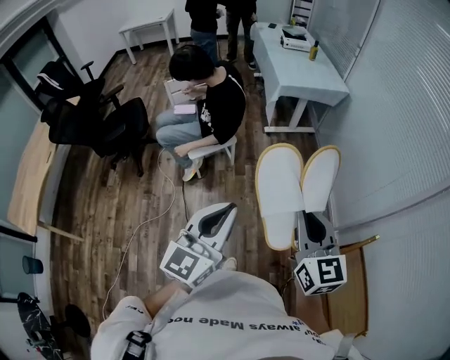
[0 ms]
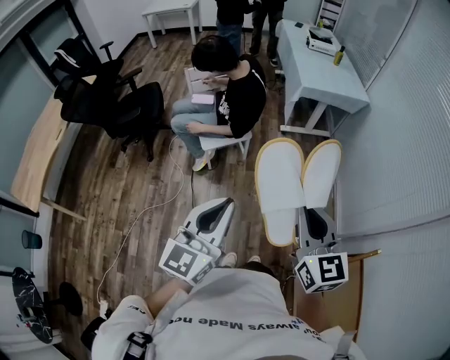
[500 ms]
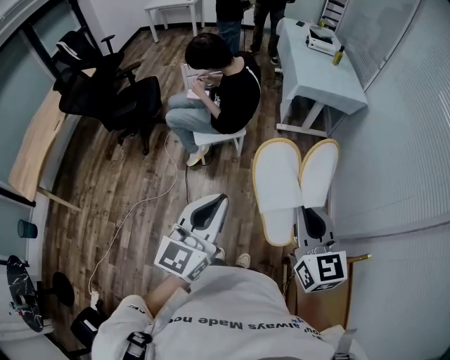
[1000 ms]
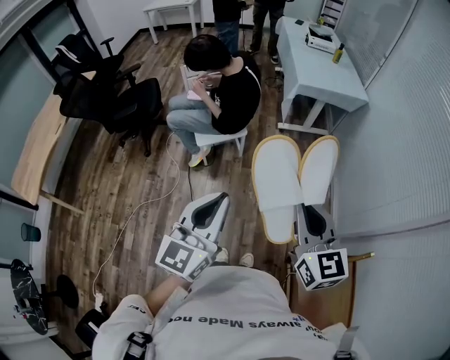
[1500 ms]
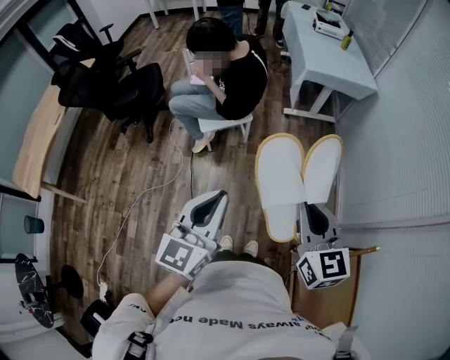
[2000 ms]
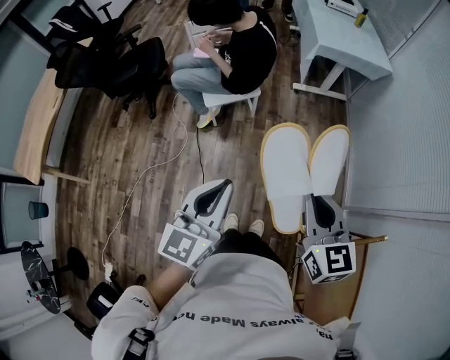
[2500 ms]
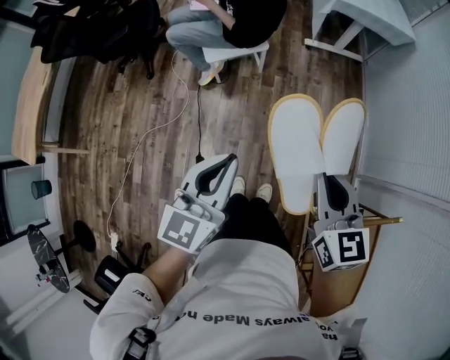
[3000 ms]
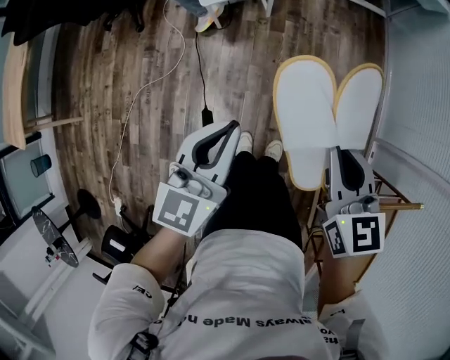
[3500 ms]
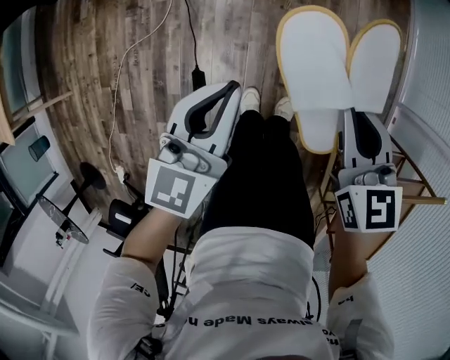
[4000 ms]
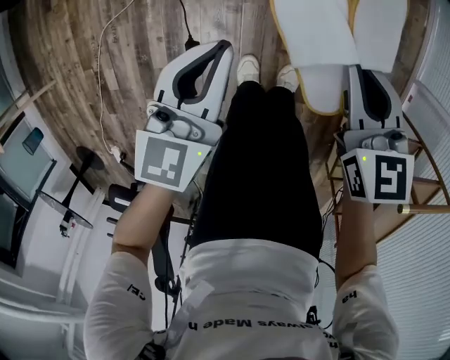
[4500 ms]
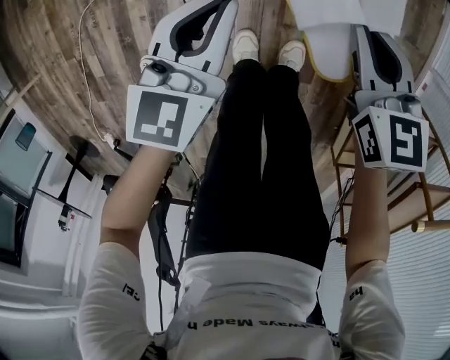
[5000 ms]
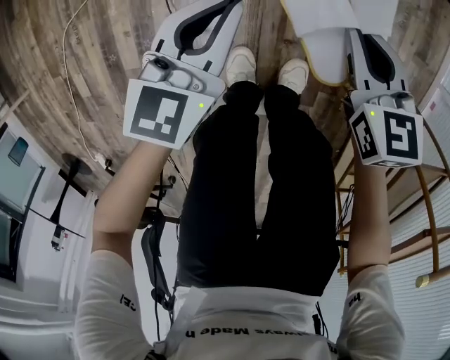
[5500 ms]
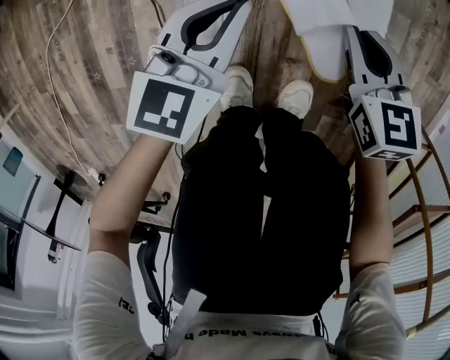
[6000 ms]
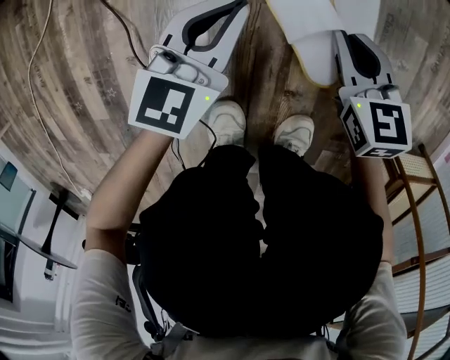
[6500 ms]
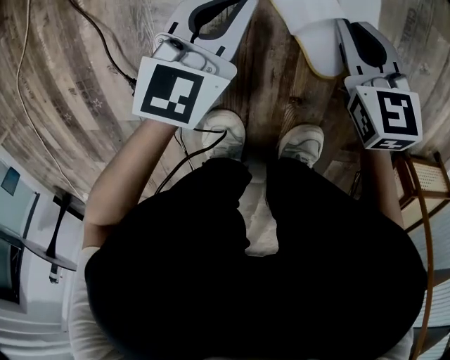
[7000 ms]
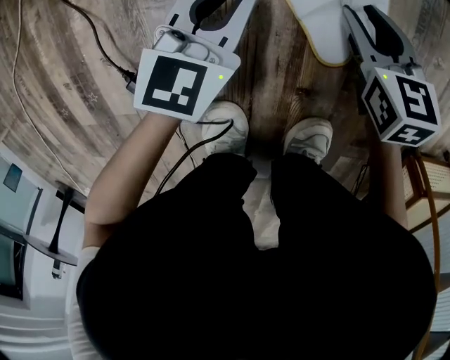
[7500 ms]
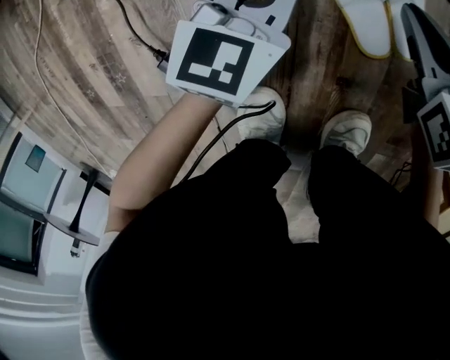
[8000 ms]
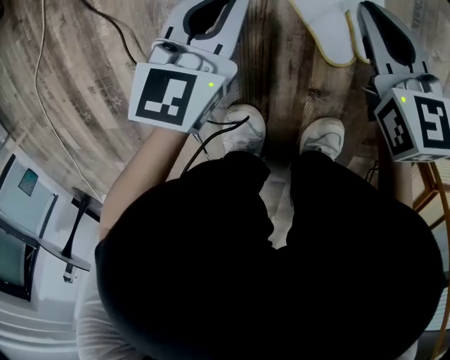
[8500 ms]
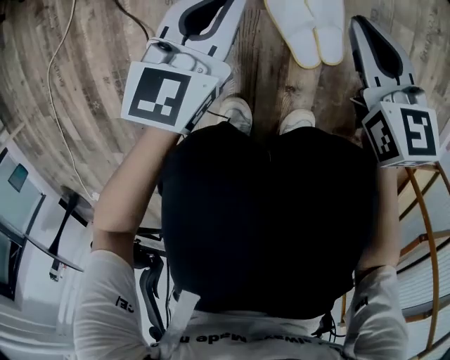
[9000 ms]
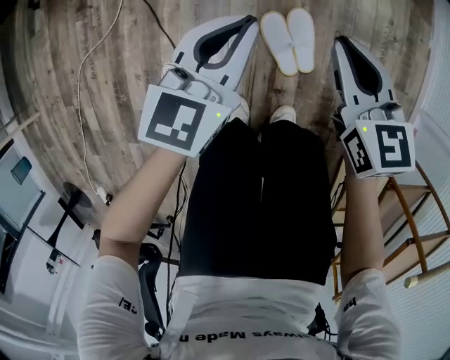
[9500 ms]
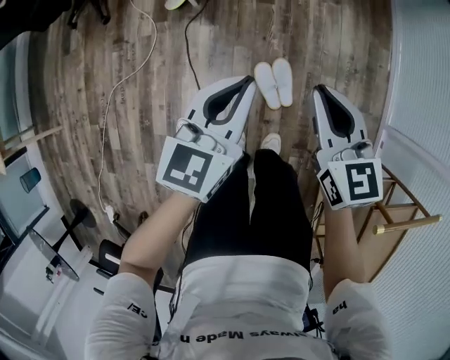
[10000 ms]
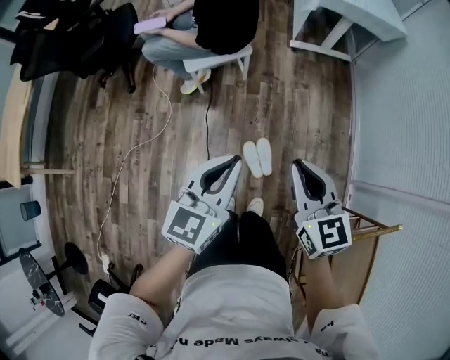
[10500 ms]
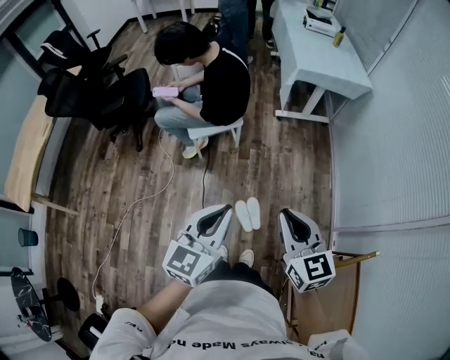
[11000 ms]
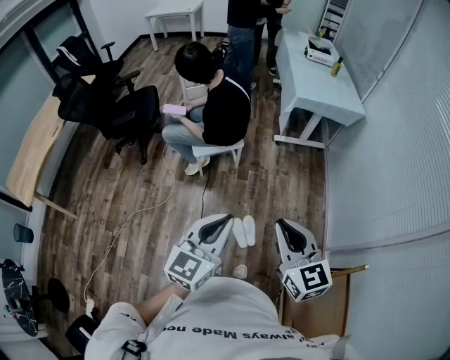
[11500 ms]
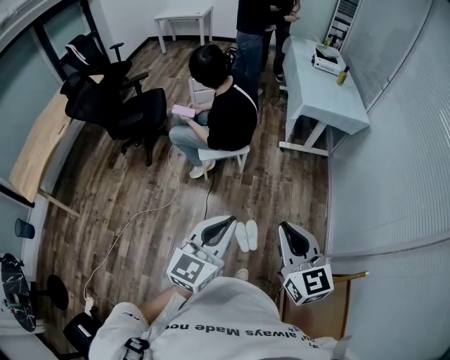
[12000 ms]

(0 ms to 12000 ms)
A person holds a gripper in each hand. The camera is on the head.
0 ms - 2000 ms: The right gripper moves about 5 cm.
2000 ms - 4000 ms: Both grippers travel together downward, about 40 cm. The right gripper turns by roughly 20 degrees.
4000 ms - 6000 ms: The two grippers go some 50 cm downward.
6000 ms - 8000 ms: The grippers both shift downward by some 25 cm. The right gripper opens, then closes once more.
8000 ms - 10000 ms: Both grippers move upward, some 70 cm.
10000 ms - 12000 ms: The two grippers go approximately 50 cm upward.

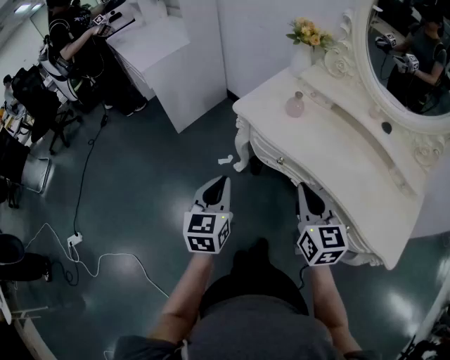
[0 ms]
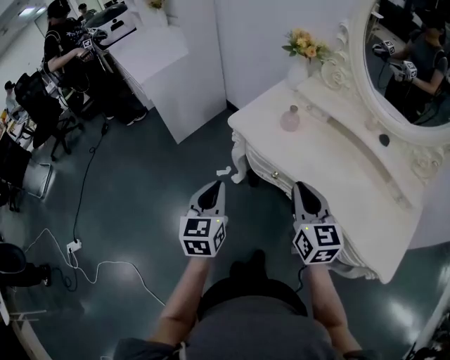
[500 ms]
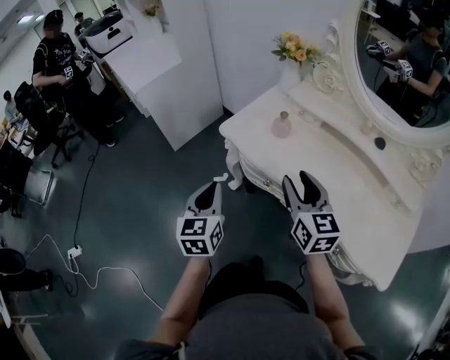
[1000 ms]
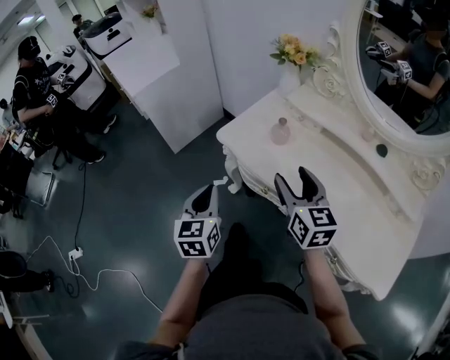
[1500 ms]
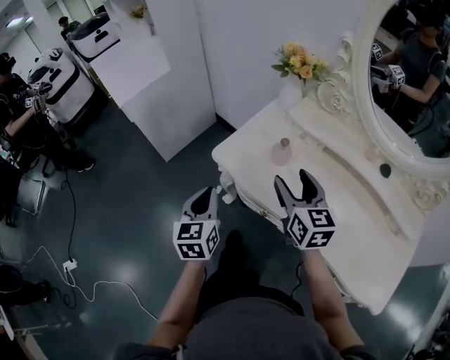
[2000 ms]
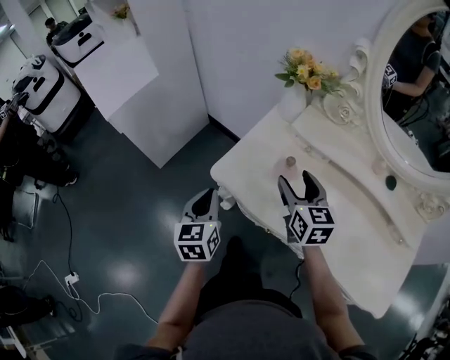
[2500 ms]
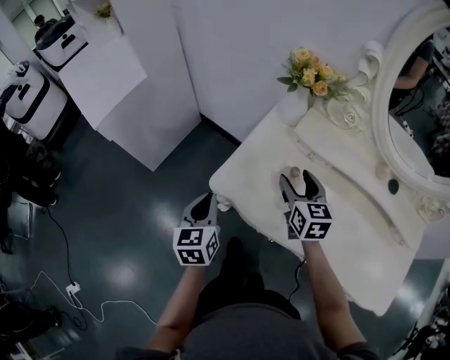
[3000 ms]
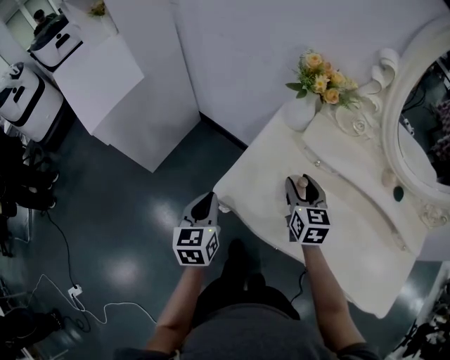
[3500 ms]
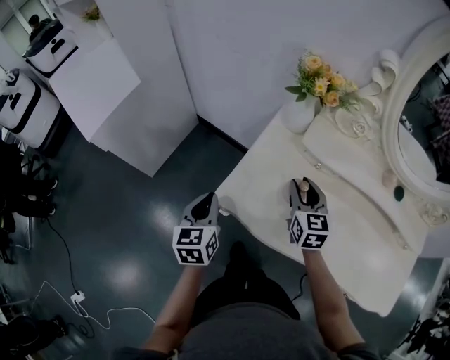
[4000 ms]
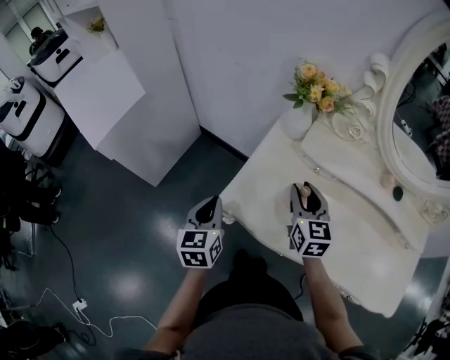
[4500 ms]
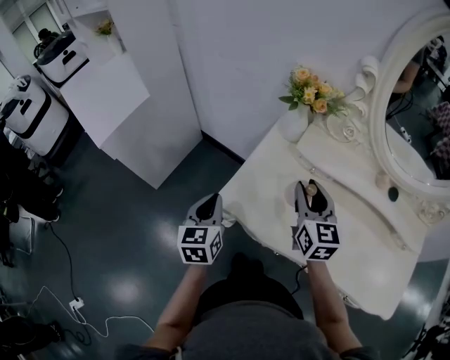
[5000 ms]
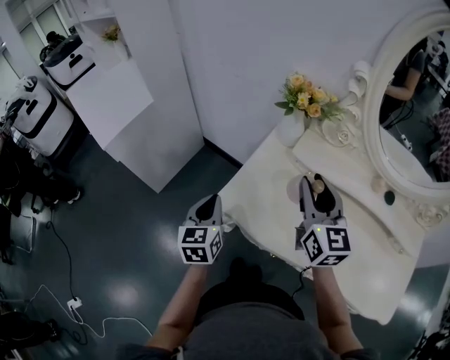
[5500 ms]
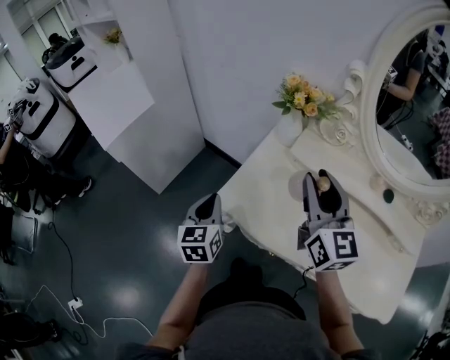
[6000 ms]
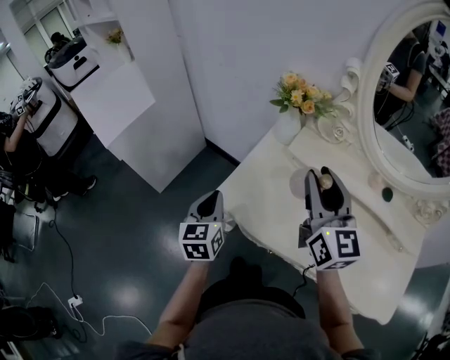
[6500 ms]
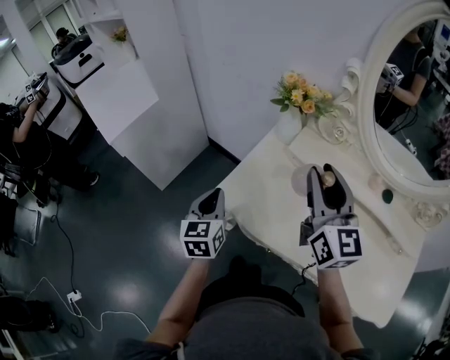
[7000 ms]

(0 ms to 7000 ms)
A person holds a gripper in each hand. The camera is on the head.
0 ms - 2000 ms: Both grippers move forward, roughly 15 cm. The right gripper opens.
2000 ms - 3500 ms: The left gripper travels forward by some 10 cm. The right gripper shifts some 15 cm forward and downward.
3500 ms - 5000 ms: The right gripper heads upward, covering some 10 cm.
5000 ms - 7000 ms: The right gripper is displaced upward by about 15 cm.

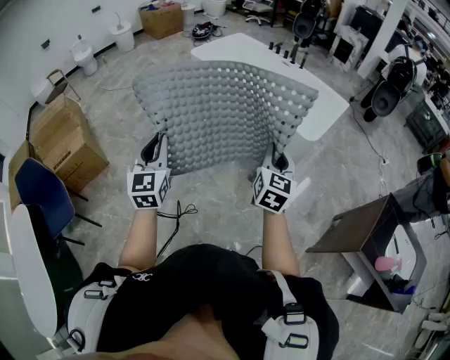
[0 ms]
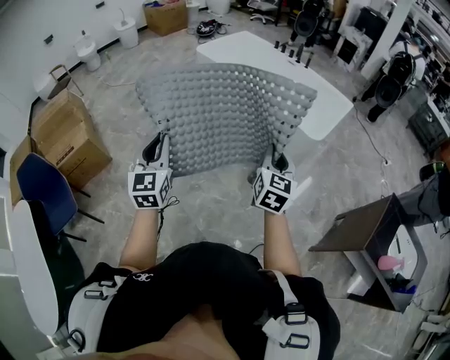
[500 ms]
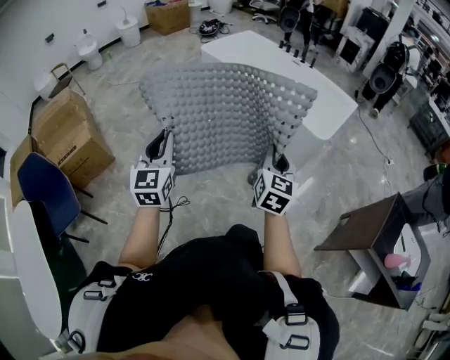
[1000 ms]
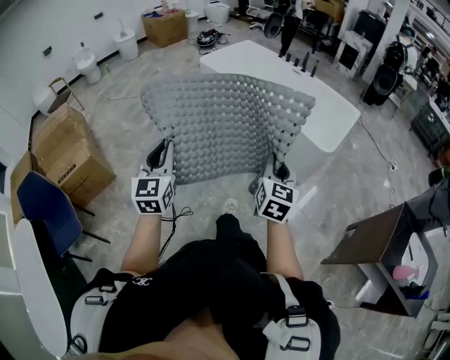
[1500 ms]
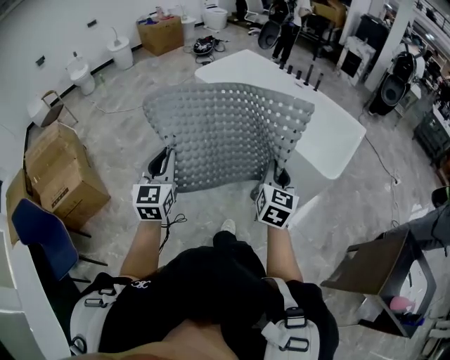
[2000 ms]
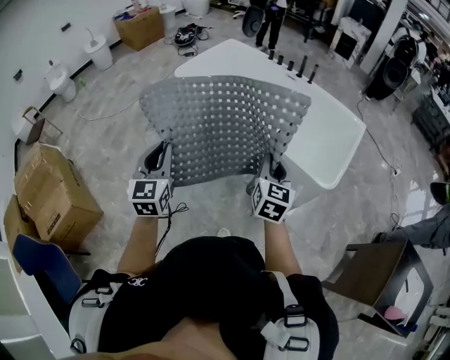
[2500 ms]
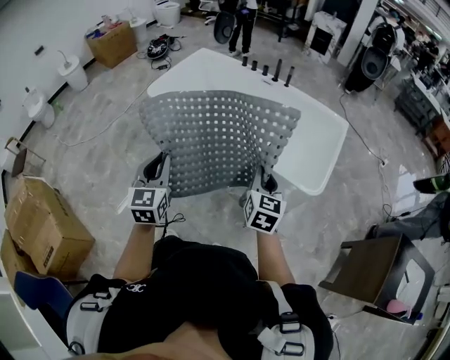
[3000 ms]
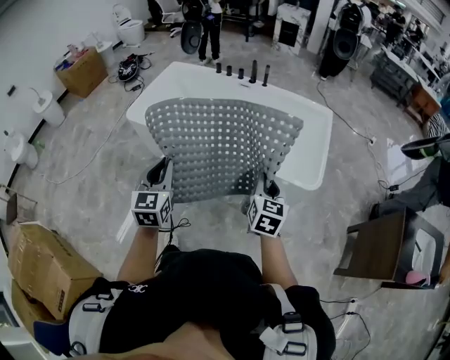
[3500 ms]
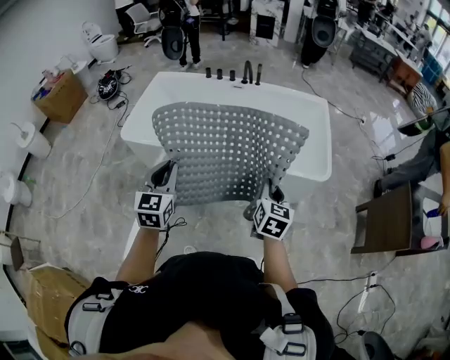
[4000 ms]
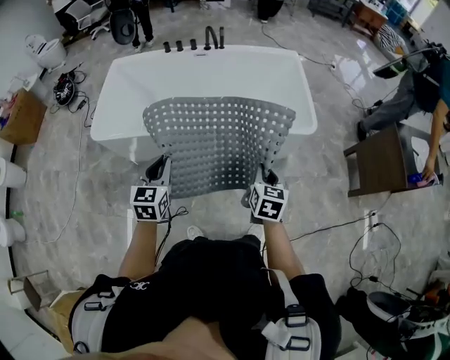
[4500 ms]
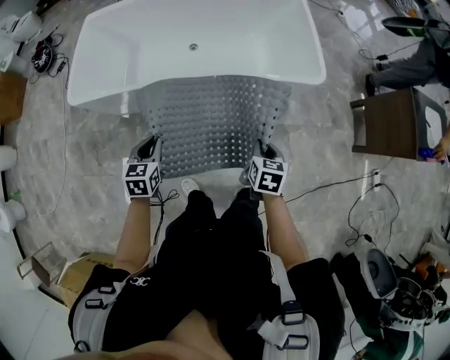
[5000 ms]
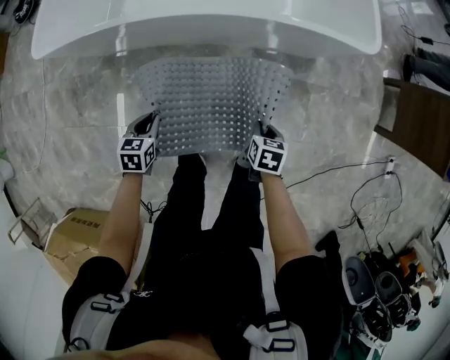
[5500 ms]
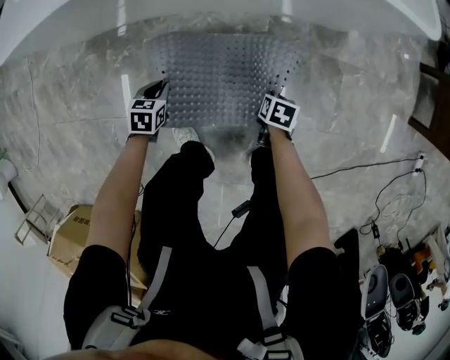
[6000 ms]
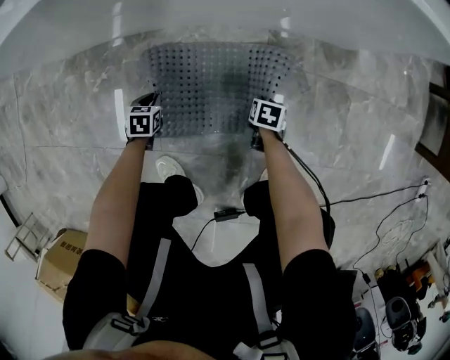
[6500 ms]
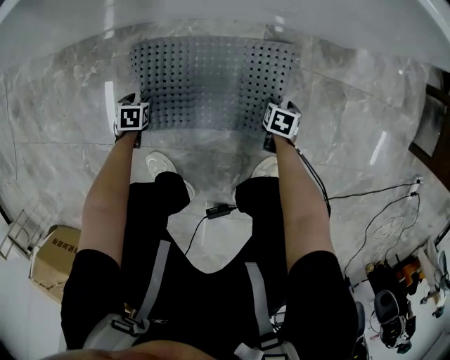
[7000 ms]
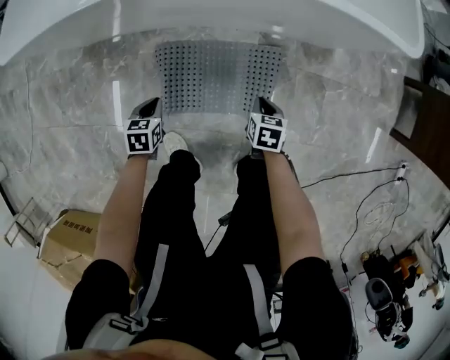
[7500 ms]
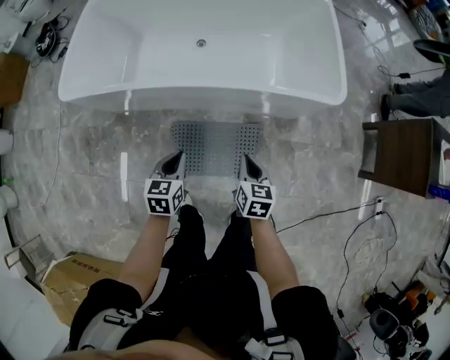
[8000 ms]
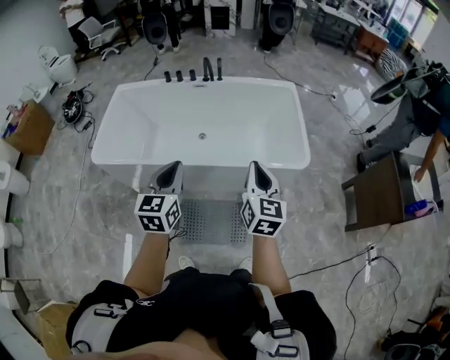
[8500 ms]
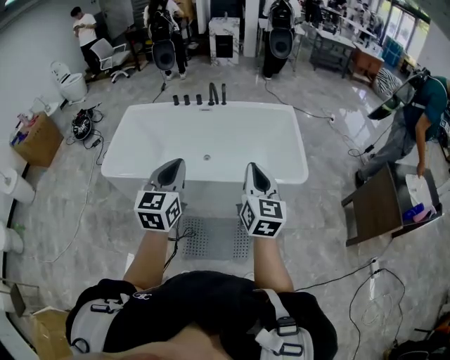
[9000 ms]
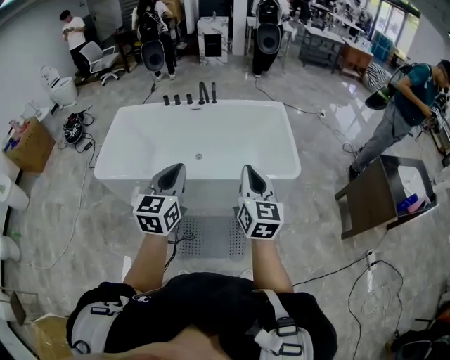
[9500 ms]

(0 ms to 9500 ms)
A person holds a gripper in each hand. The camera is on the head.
0 ms - 2000 ms: Both grippers move forward and to the left, some 25 cm.
2000 ms - 4000 ms: The left gripper moves approximately 50 cm, and swivels some 40 degrees, while the right gripper moves roughly 30 cm, and changes its angle by approximately 40 degrees.
4000 ms - 5500 ms: The two grippers go roughly 50 cm downward. The left gripper points its fingers some 40 degrees further downward, while the right gripper tips its fingers downward by roughly 40 degrees.
5500 ms - 7500 ms: The two grippers go approximately 20 cm downward. The left gripper opens and closes again, while the right gripper opens and closes again.
7500 ms - 9500 ms: The grippers both shift upward by approximately 80 cm. The right gripper tips its fingers upward by some 60 degrees; the left gripper tips its fingers upward by about 60 degrees.
